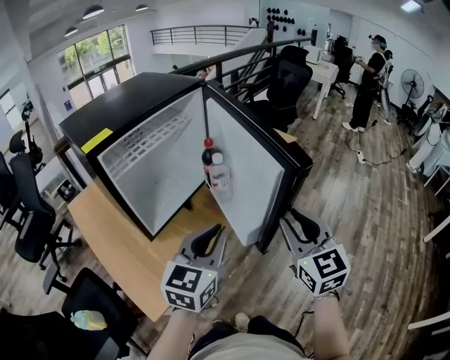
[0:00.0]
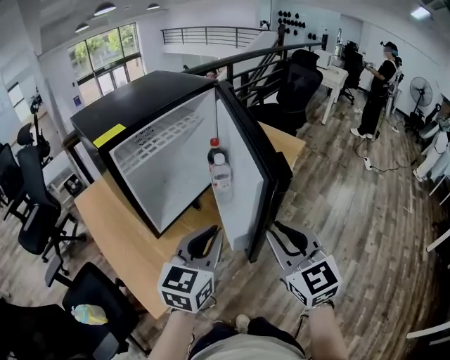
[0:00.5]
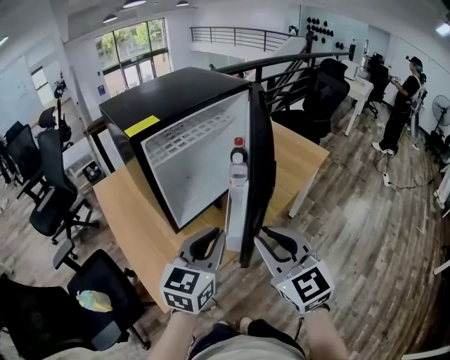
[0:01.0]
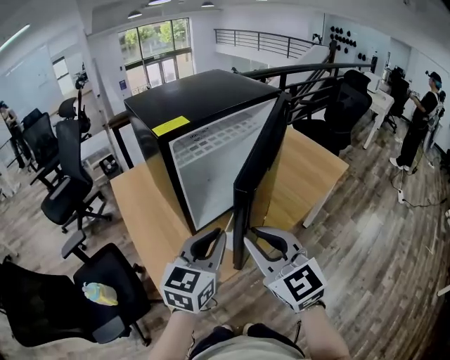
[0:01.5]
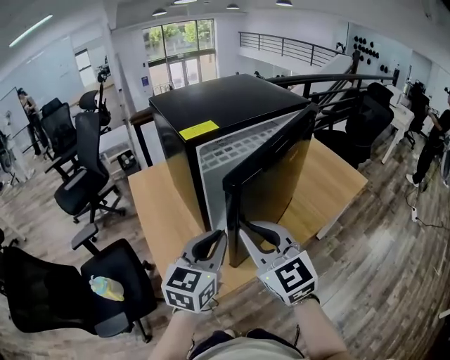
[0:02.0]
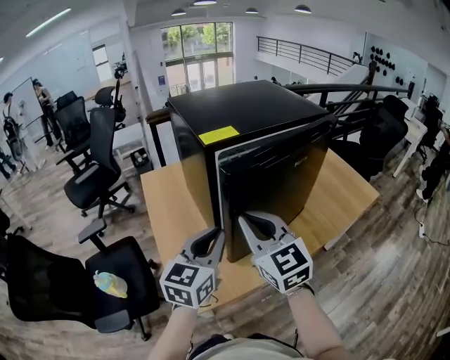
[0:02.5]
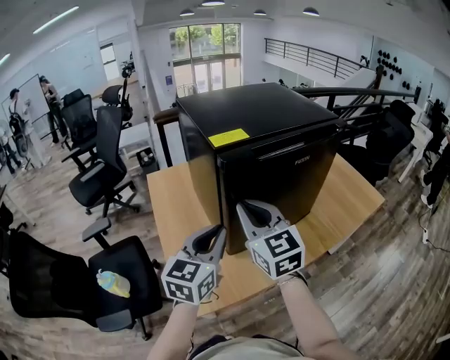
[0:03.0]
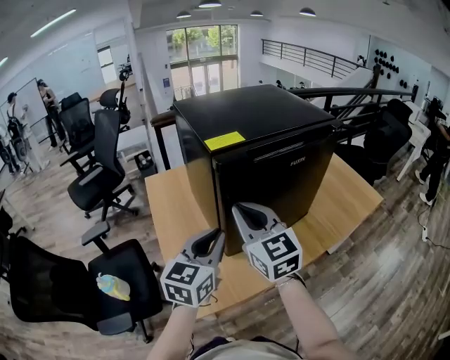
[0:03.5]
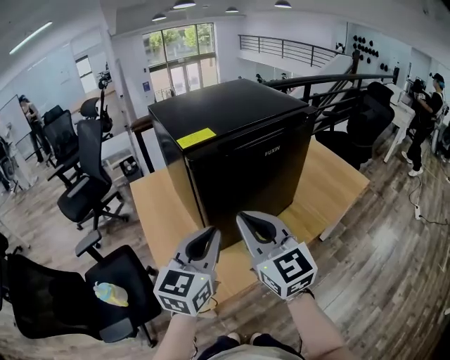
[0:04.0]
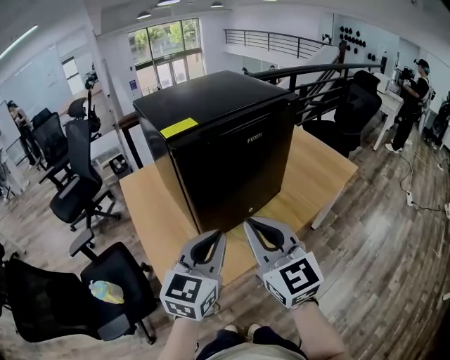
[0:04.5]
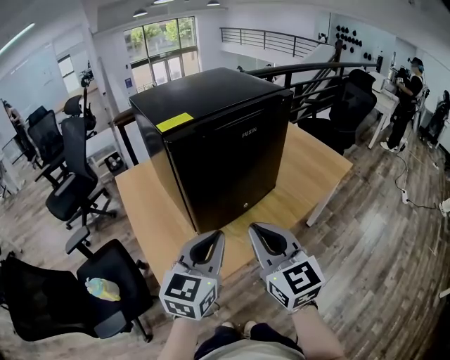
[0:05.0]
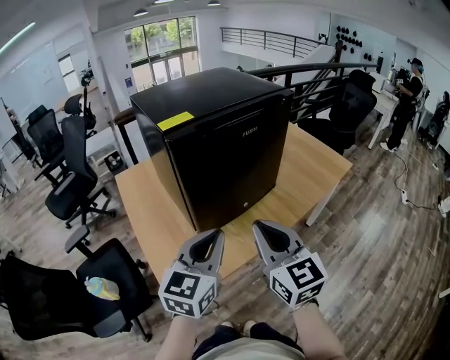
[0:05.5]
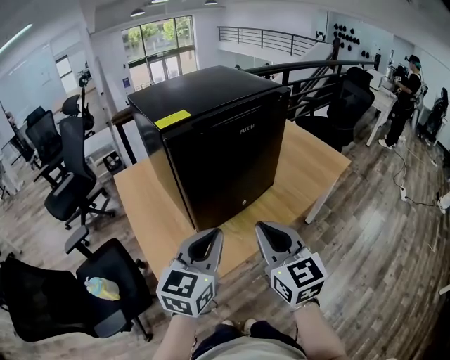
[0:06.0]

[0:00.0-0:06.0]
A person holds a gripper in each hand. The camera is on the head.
0:00.0 to 0:02.0: The right gripper changes place by approximately 30 cm, and swivels some 40 degrees, while the left gripper ends up about 20 cm from where it was, and changes its angle by some 20 degrees.
0:02.0 to 0:04.0: The right gripper reaches some 10 cm forward, then returns.
0:04.0 to 0:06.0: The right gripper goes some 15 cm to the right, backward and downward, while the left gripper goes roughly 5 cm backward.

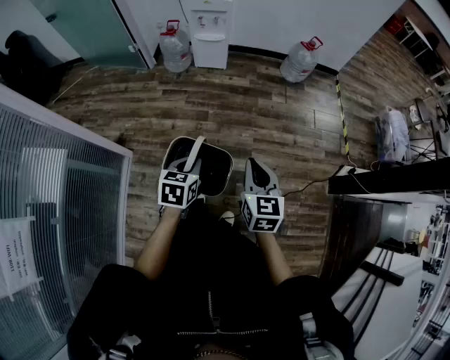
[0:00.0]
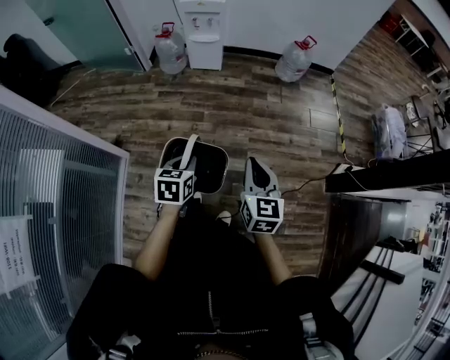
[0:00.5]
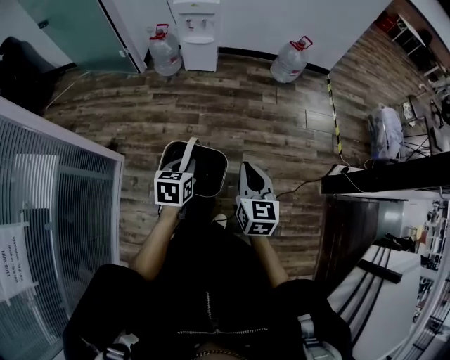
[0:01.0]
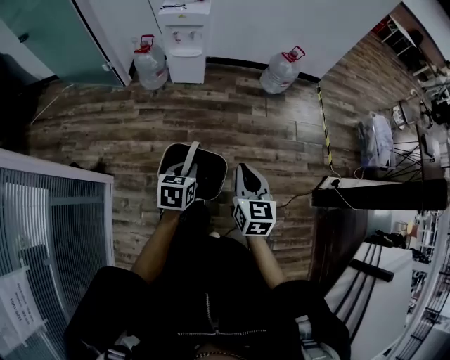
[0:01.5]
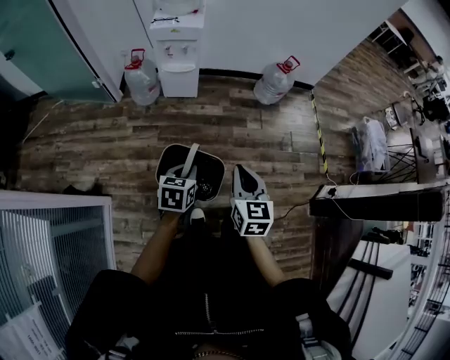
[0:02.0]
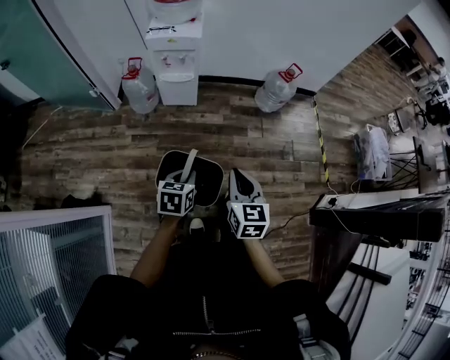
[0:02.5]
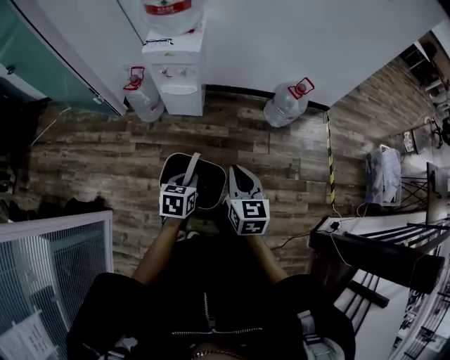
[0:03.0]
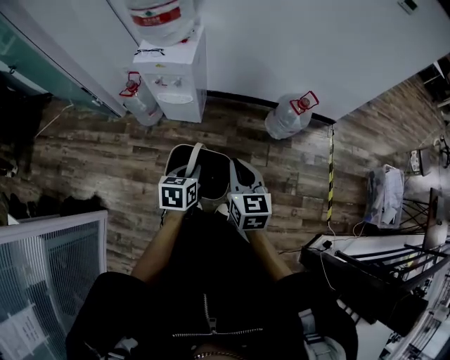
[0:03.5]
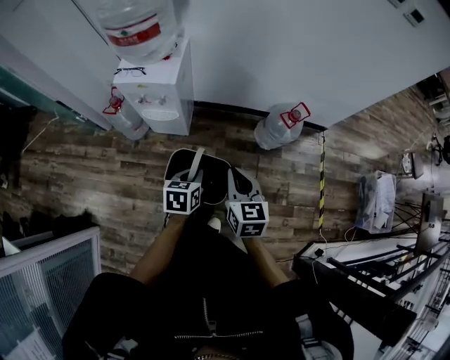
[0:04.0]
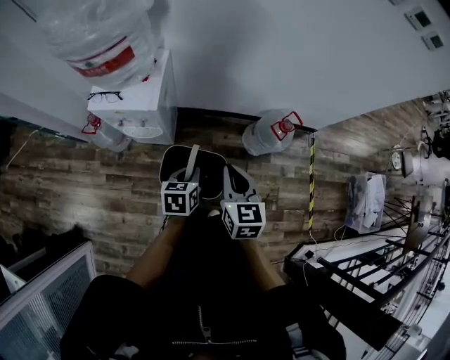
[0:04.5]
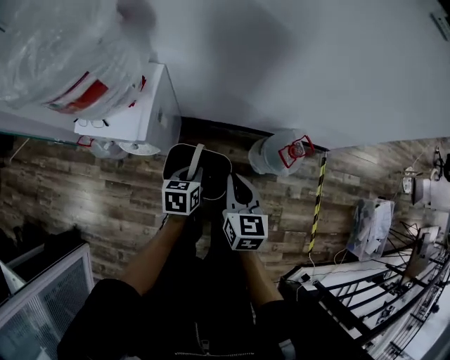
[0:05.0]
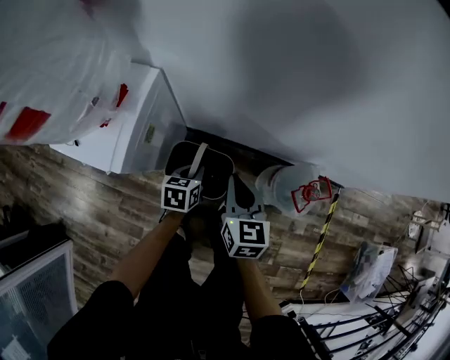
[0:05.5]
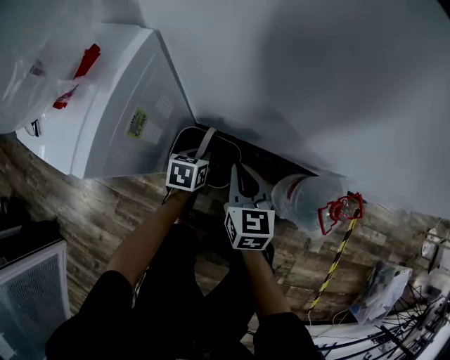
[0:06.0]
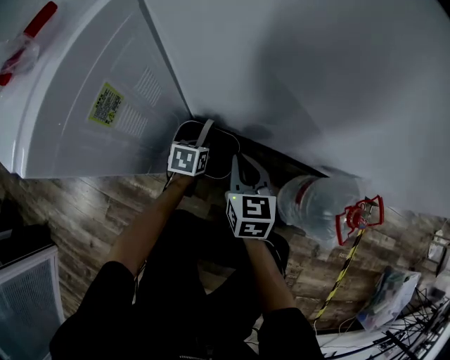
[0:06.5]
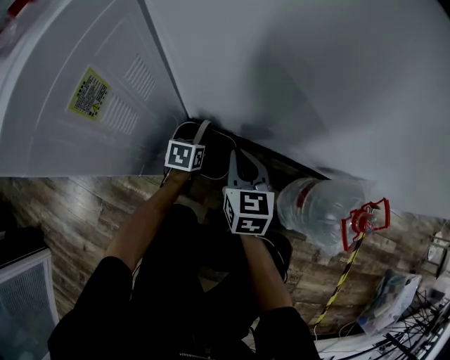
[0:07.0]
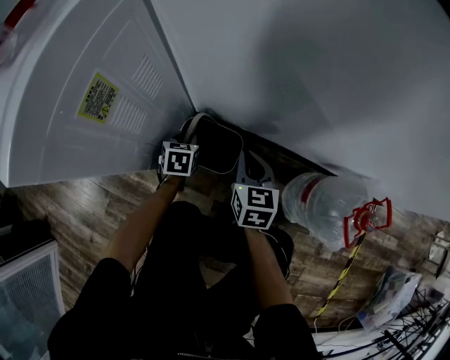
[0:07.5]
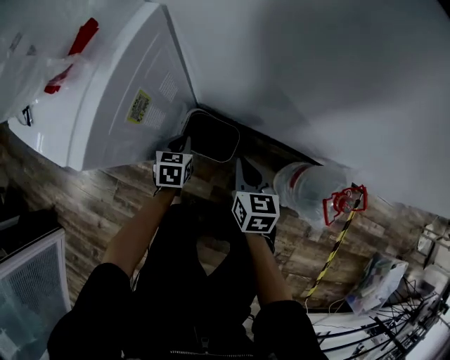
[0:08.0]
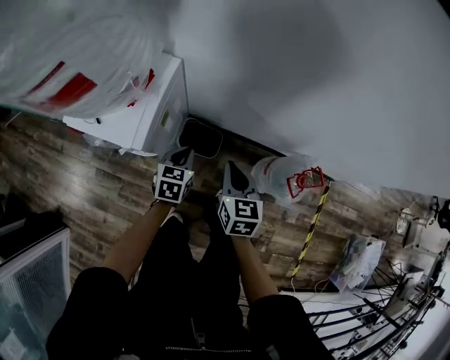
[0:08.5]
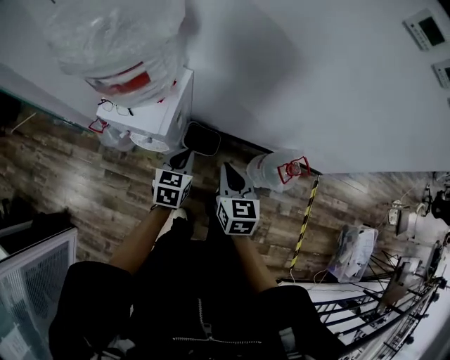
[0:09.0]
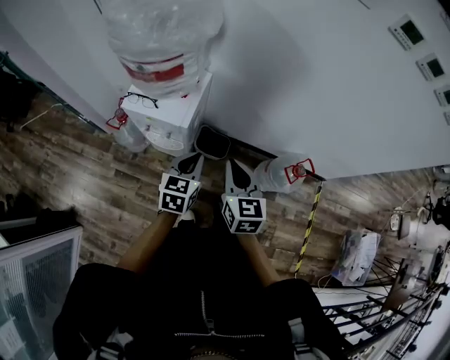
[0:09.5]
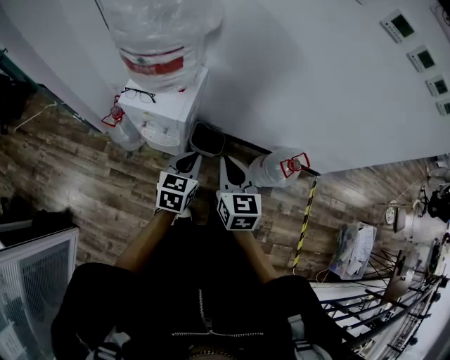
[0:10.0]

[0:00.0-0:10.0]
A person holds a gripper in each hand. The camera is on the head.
0:00.0 to 0:02.0: Both grippers travel together forward, about 25 cm.
0:02.0 to 0:04.0: The two grippers travel together, forward, some 40 cm.
0:04.0 to 0:06.0: The two grippers travel together, forward, about 40 cm. The grippers both shift downward by some 35 cm.
0:06.0 to 0:08.0: The right gripper travels downward by some 5 cm. The left gripper is displaced to the left by about 10 cm, travels downward and back again, about 20 cm each way, and opens, then closes once more.
0:08.0 to 0:10.0: Both grippers travel together upward and backward, some 50 cm. The left gripper changes its angle by about 20 degrees.

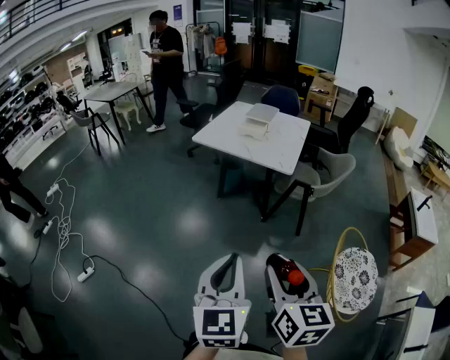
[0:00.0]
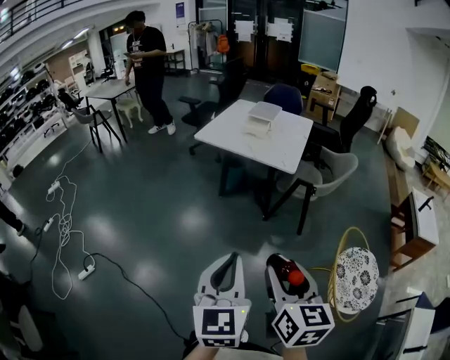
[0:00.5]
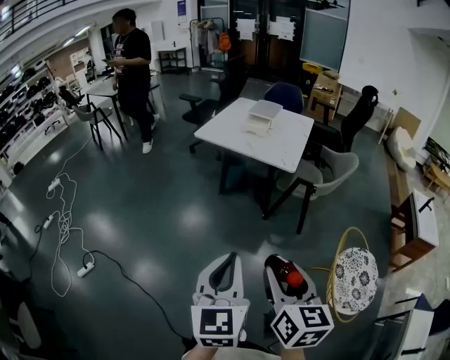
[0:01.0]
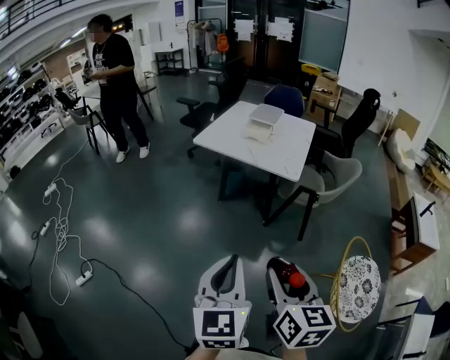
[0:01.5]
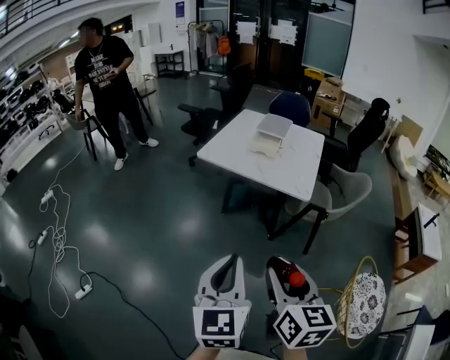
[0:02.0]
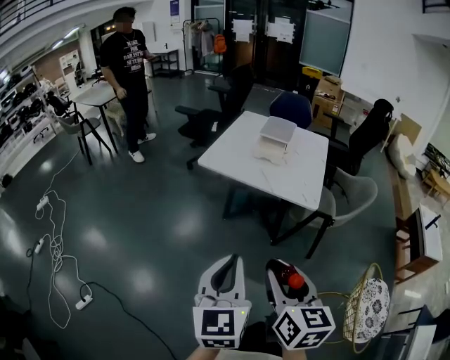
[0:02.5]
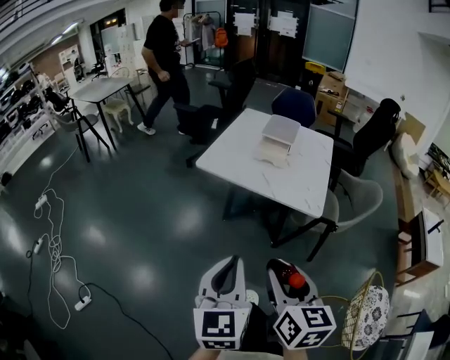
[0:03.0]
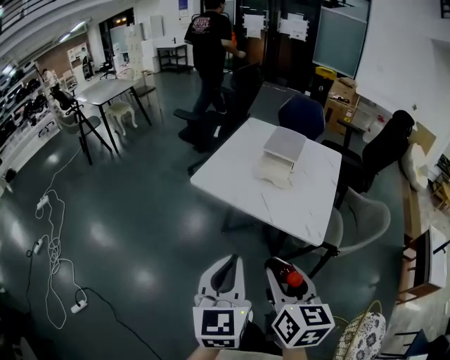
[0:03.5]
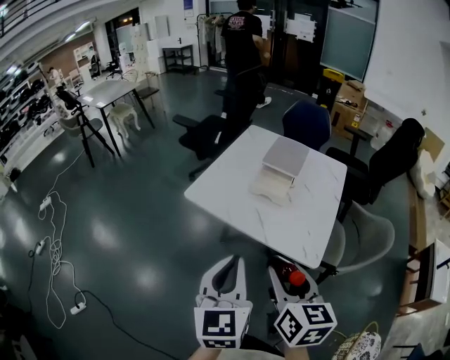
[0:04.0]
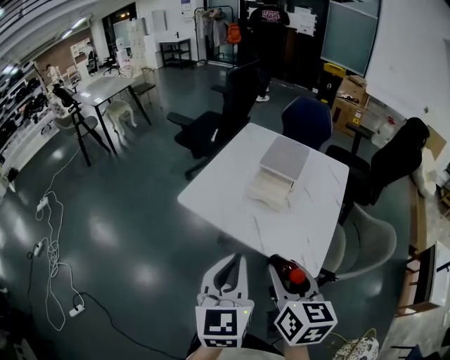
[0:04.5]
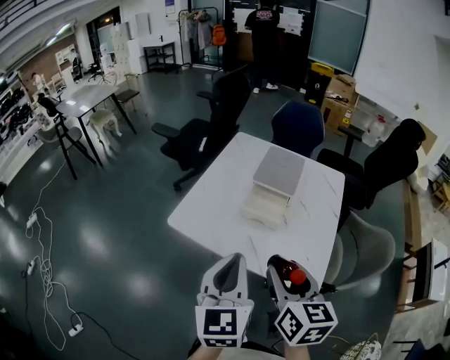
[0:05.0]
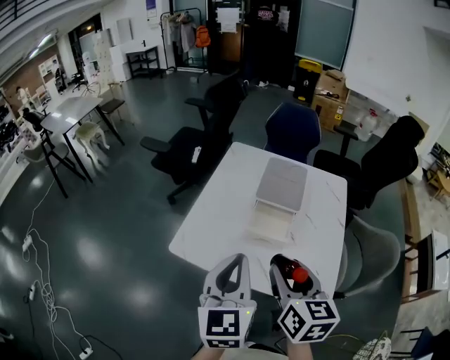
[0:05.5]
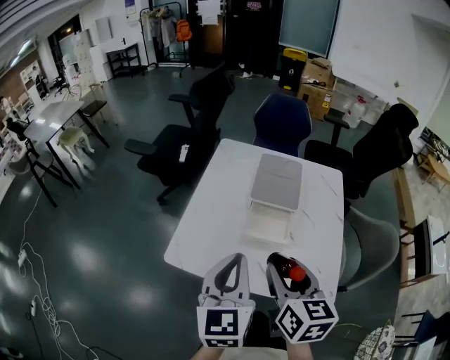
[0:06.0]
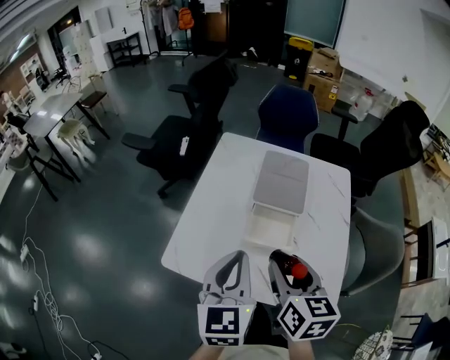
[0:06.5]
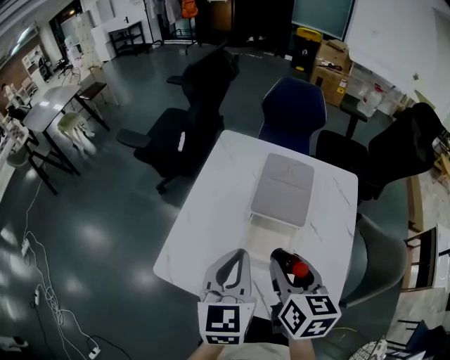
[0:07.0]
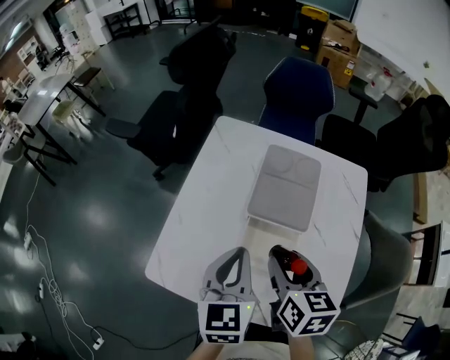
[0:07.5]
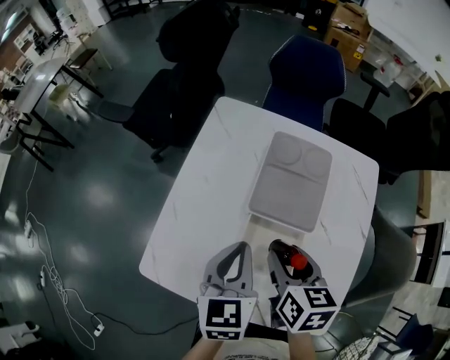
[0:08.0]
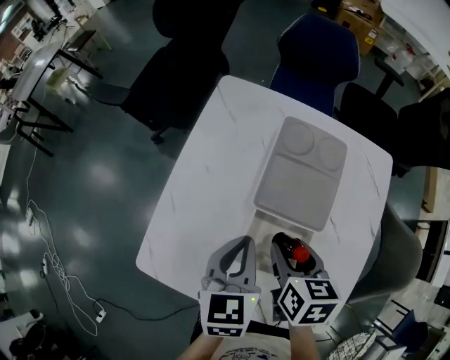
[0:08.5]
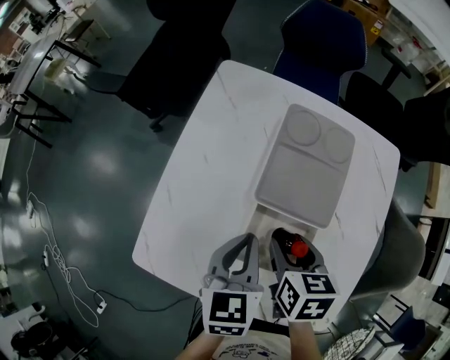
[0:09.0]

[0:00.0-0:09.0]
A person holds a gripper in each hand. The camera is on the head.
0:00.0 to 0:02.0: Both grippers move forward, about 20 cm.
0:02.0 to 0:04.5: Both grippers are carried forward, some 40 cm.
0:04.5 to 0:07.0: The grippers both shift forward by about 35 cm.
0:07.0 to 0:09.0: The grippers both shift downward and forward by approximately 20 cm. The right gripper turns by roughly 20 degrees.

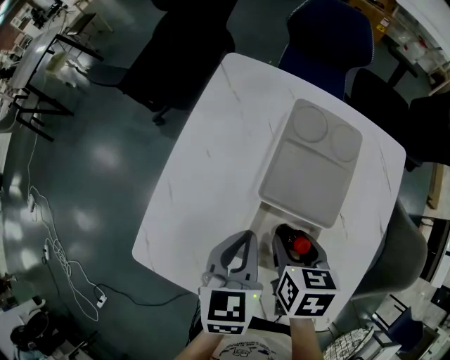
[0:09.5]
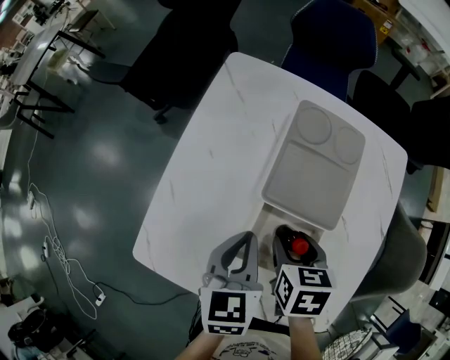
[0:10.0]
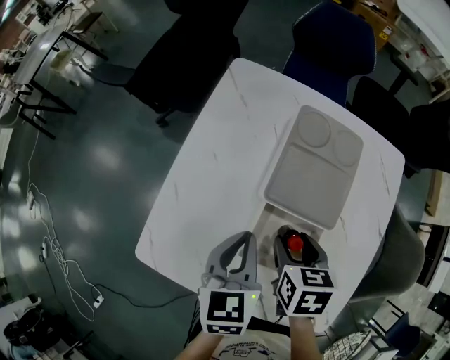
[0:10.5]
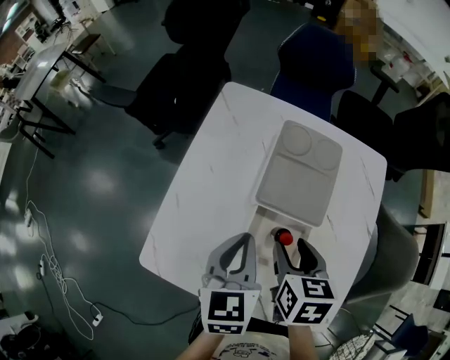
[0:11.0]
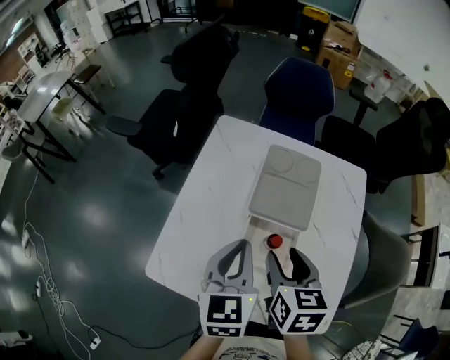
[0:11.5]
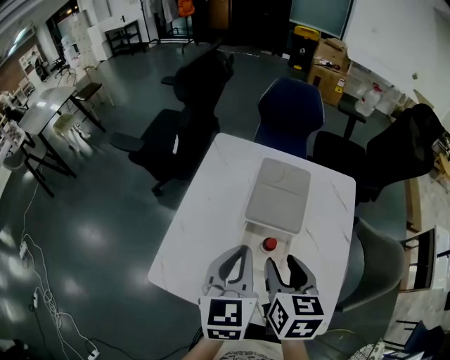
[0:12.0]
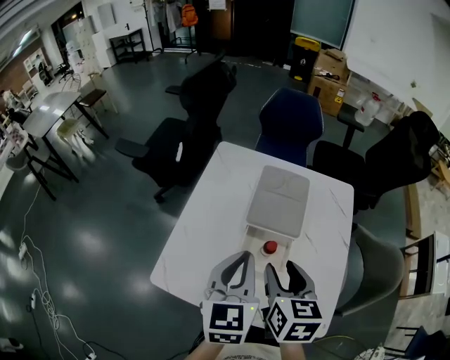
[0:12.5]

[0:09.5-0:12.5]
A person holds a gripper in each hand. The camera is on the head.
0:09.5 to 0:11.0: Both grippers move upward, about 5 cm.
0:11.0 to 0:12.5: The grippers both shift upward and backward by approximately 15 cm.
